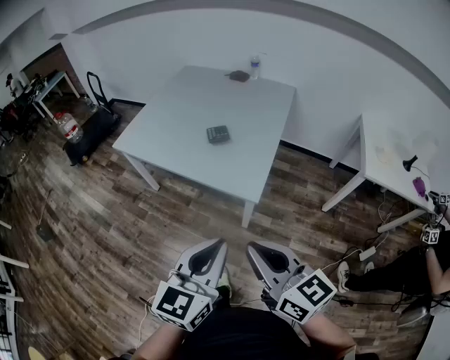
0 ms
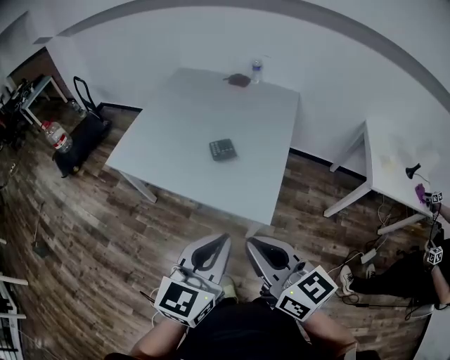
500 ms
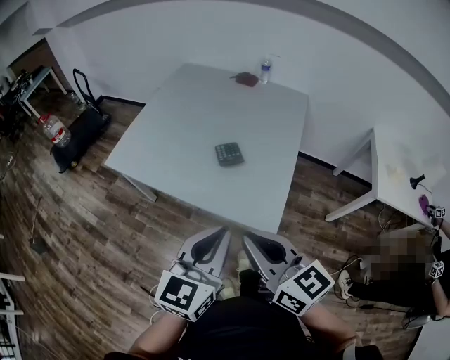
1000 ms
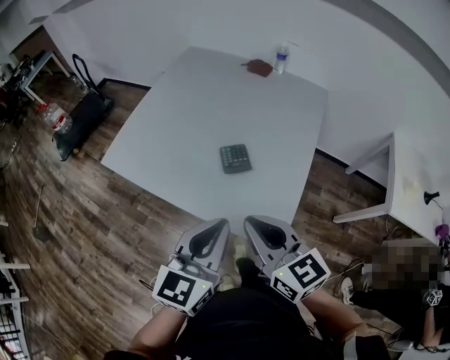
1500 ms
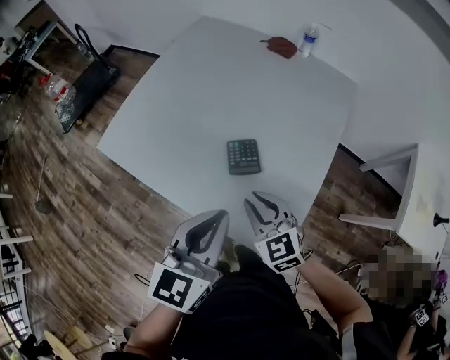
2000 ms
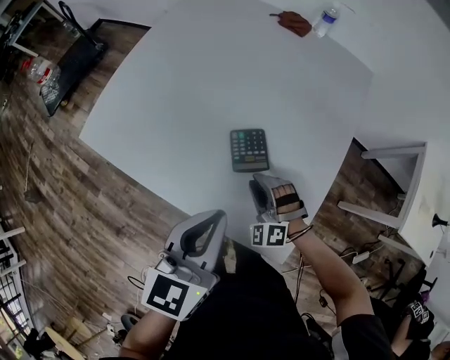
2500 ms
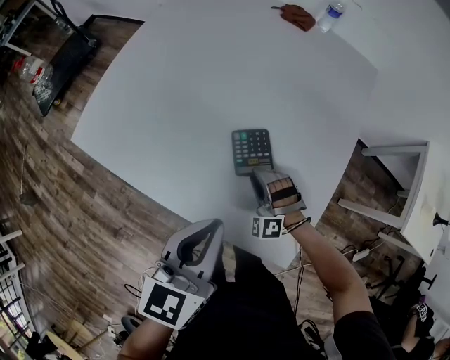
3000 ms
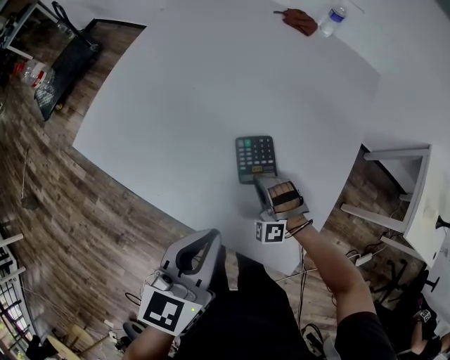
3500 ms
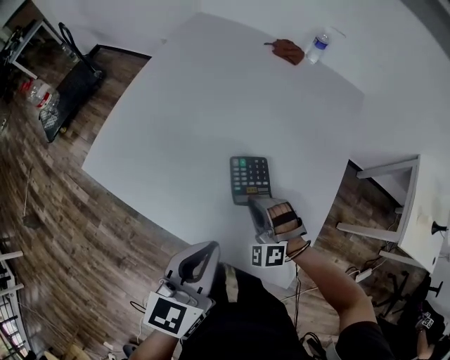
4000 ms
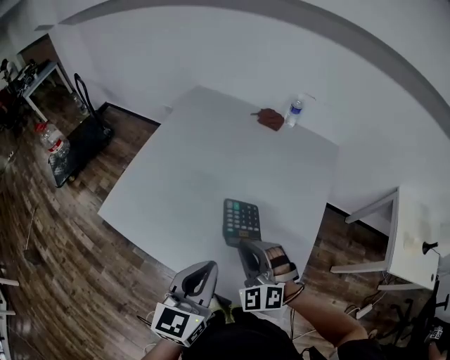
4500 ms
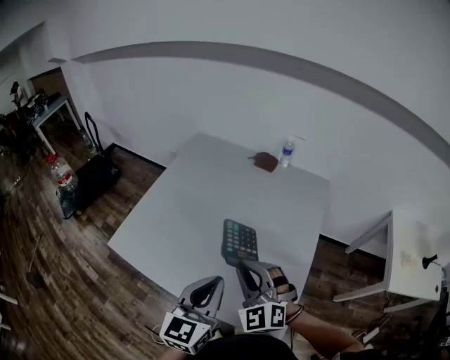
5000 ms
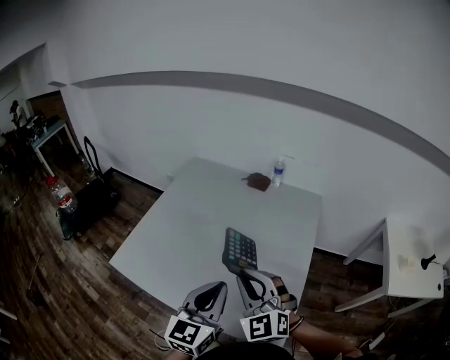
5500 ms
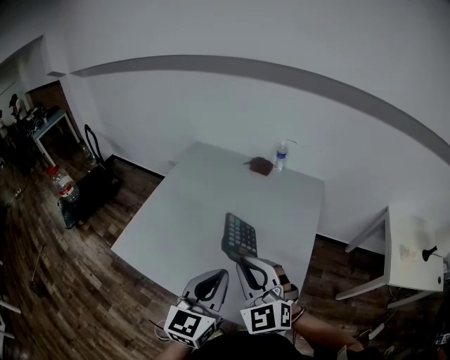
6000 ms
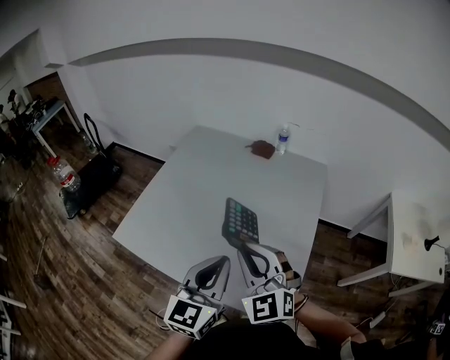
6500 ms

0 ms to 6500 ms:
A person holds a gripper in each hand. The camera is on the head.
0 ms to 2000 ms: The left gripper shifts roughly 40 cm forward; the right gripper heads forward and downward, covering approximately 50 cm, and swivels approximately 40 degrees.
2000 ms to 4500 ms: The right gripper moves forward and to the left, about 5 cm, moves approximately 20 cm downward and comes back, and turns by some 40 degrees, while the left gripper travels to the left by approximately 5 cm, and reaches approximately 10 cm downward, then returns.
4500 ms to 6500 ms: The left gripper is displaced upward by about 5 cm; the right gripper is displaced upward by approximately 15 cm, and rotates some 20 degrees.

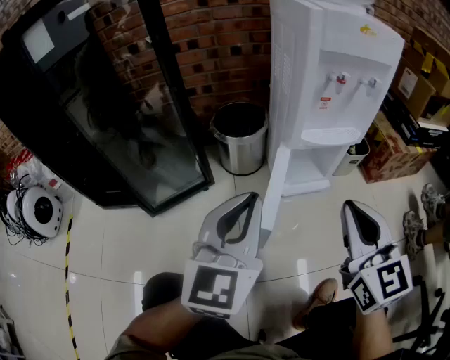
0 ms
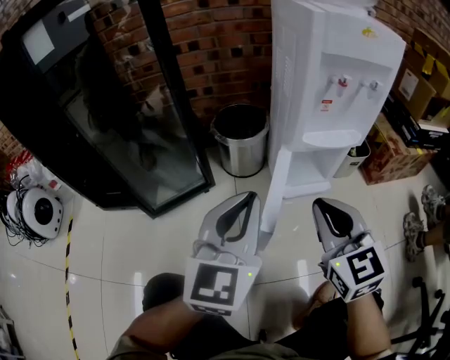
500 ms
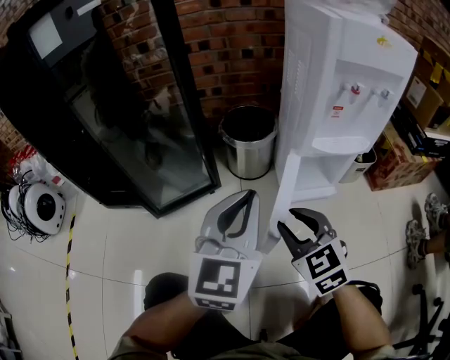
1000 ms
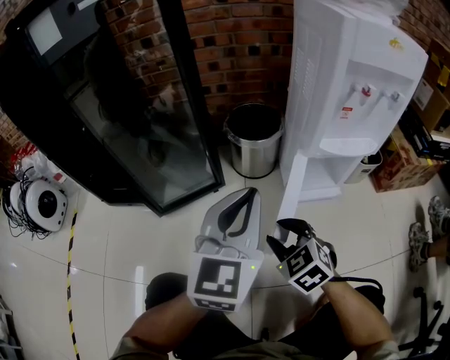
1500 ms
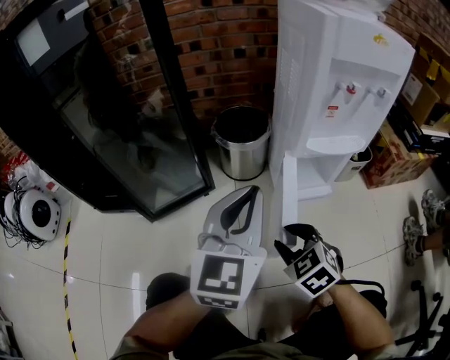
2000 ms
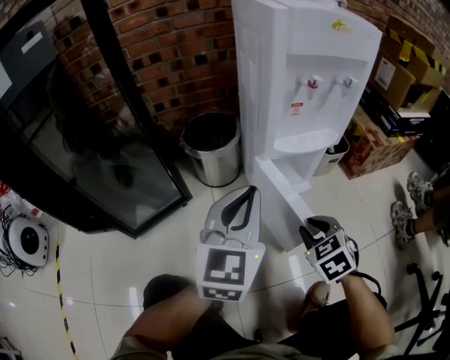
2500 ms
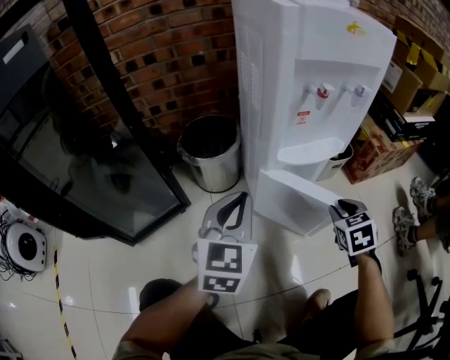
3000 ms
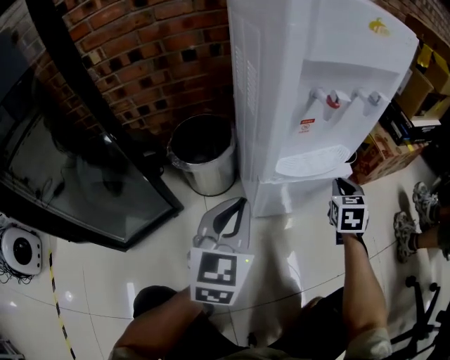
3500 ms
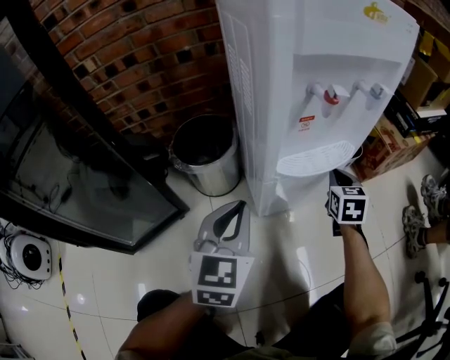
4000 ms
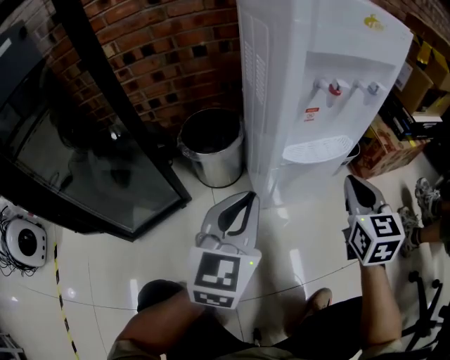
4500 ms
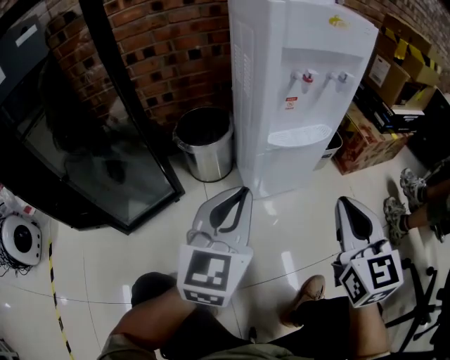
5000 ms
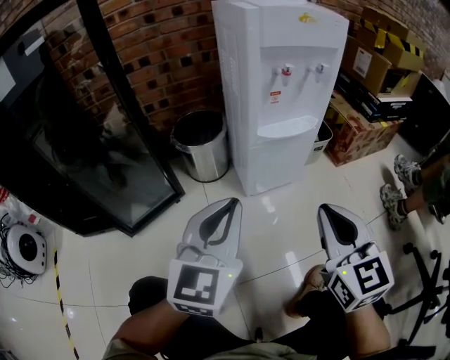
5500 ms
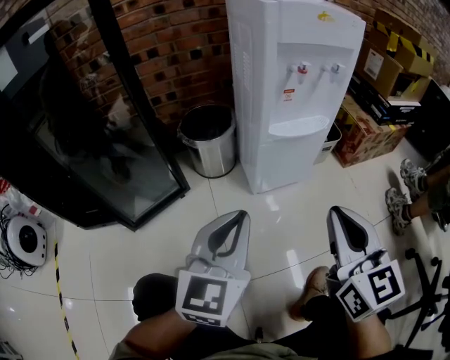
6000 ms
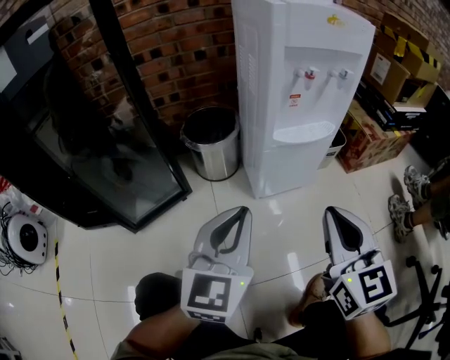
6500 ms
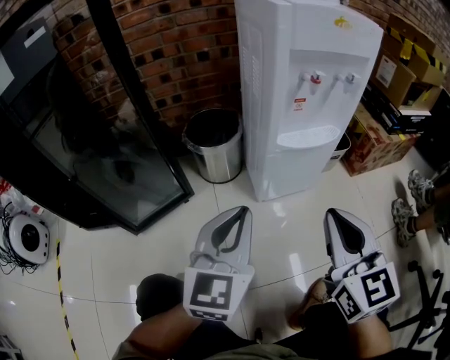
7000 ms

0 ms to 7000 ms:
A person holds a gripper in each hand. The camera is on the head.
0 ms to 2000 ms: The right gripper heads downward and to the left, covering roughly 25 cm, tips its fingers downward by approximately 40 degrees, and opens its fingers.
2000 ms to 3500 ms: The left gripper shifts by some 15 cm. The right gripper moves some 40 cm, rotates some 50 degrees, and closes up.
3500 ms to 5000 ms: The left gripper is displaced backward and upward by approximately 15 cm; the right gripper goes roughly 30 cm backward and upward, and rotates roughly 30 degrees.
5000 ms to 7000 ms: The right gripper changes place by approximately 5 cm.

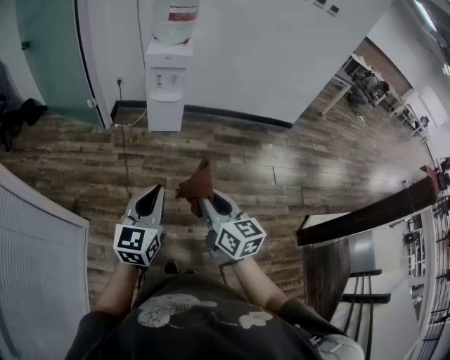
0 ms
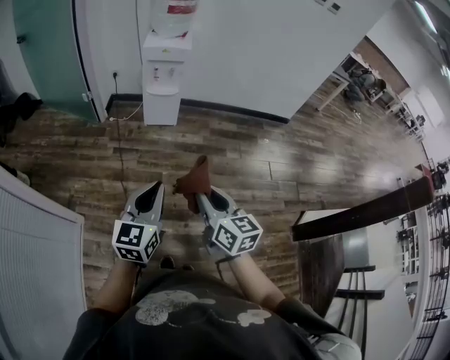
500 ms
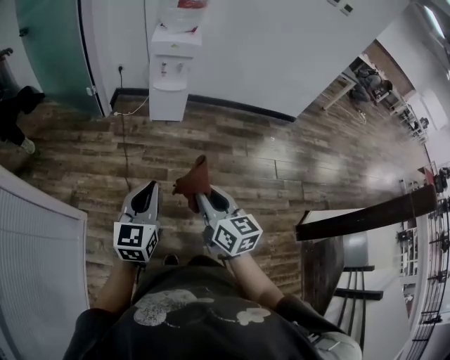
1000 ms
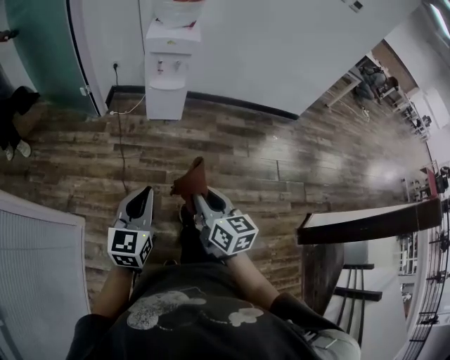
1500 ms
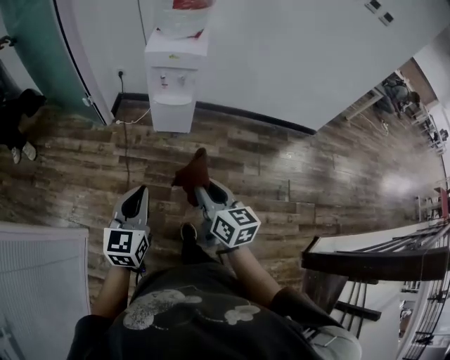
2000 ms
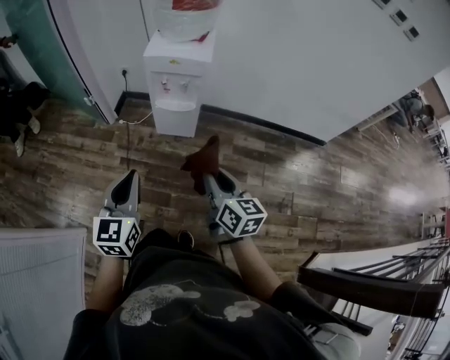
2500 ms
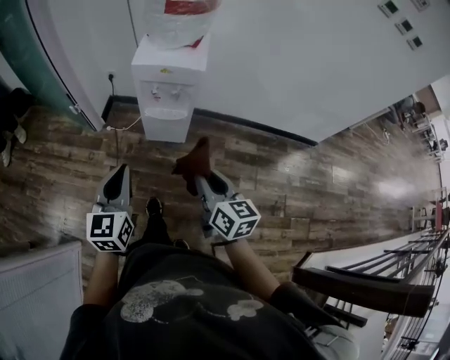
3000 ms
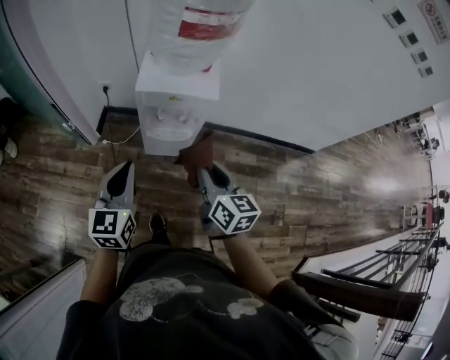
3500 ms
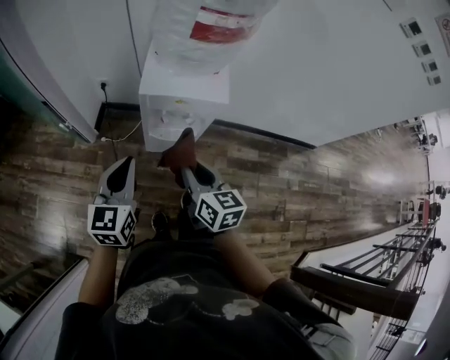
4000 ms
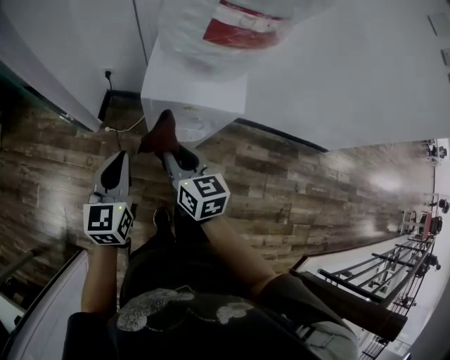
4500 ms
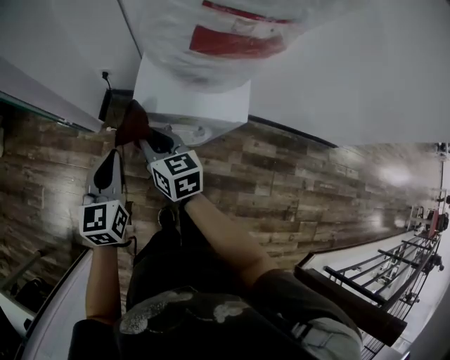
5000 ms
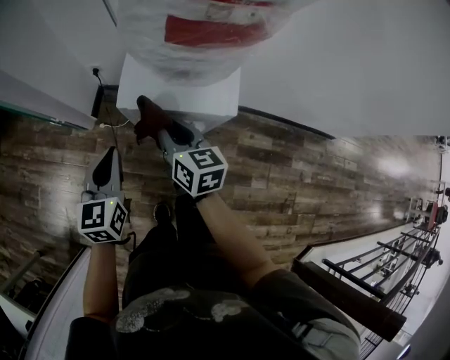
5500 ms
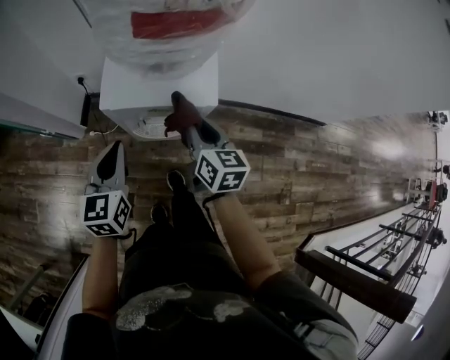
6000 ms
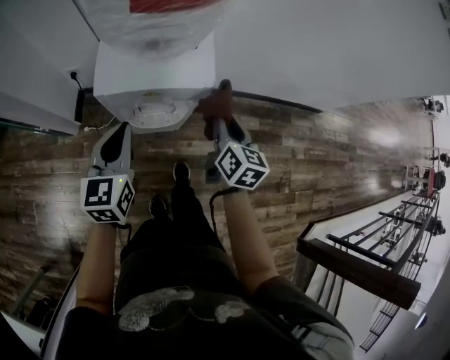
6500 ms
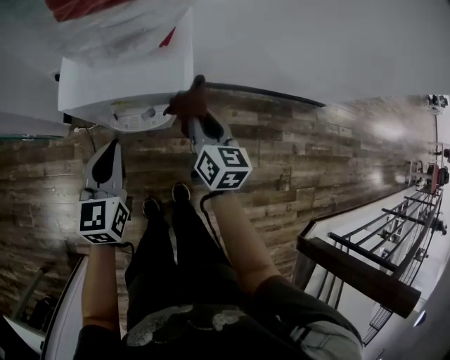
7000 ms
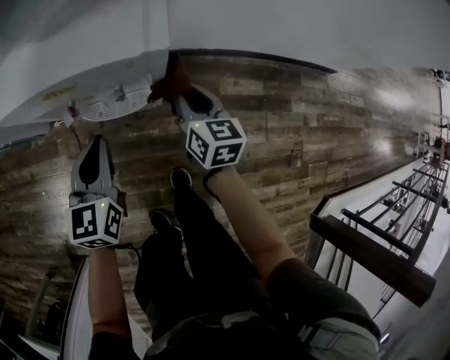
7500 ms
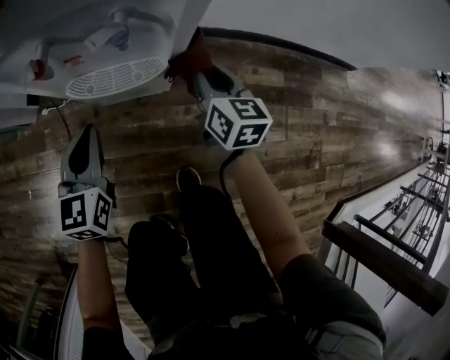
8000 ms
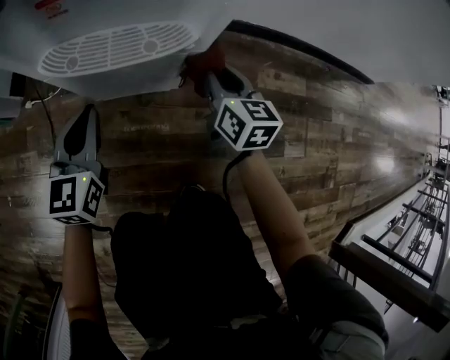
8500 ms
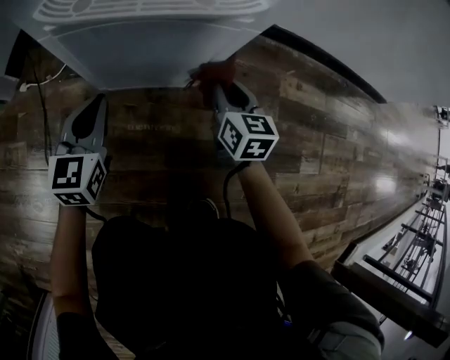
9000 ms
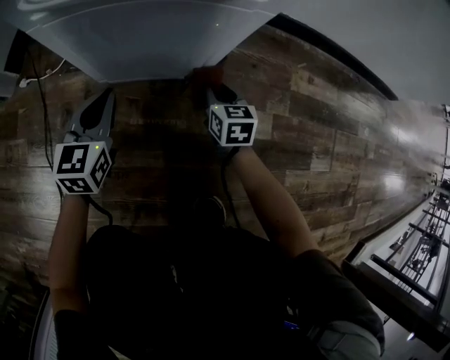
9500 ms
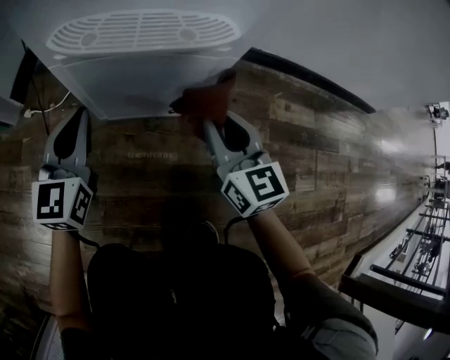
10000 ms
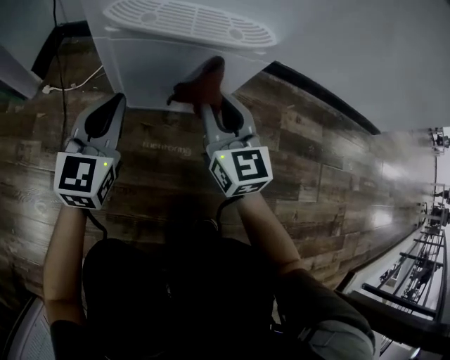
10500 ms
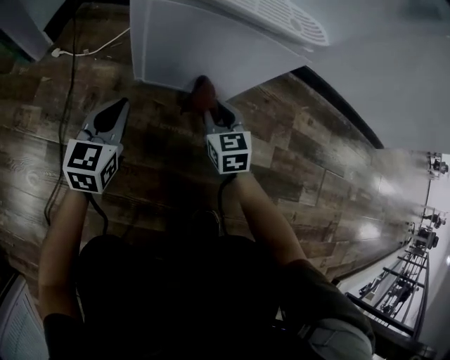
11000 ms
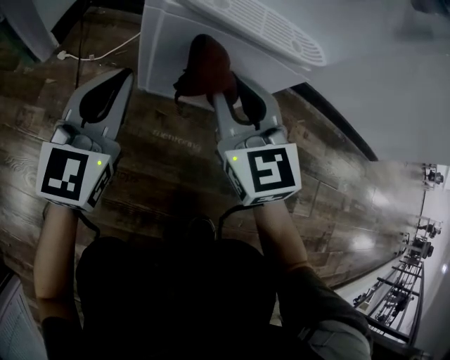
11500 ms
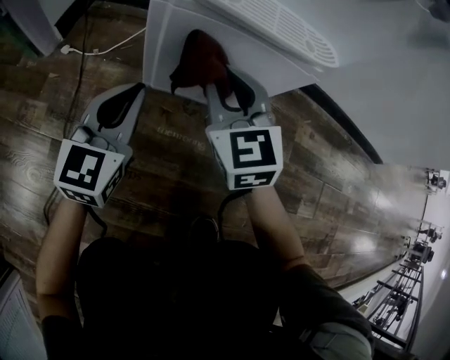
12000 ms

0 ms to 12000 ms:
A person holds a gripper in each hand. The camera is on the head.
0 ms to 2000 ms: The two grippers go approximately 25 cm forward.
2000 ms to 4000 ms: Both grippers move forward, some 40 cm.
4000 ms to 6000 ms: The left gripper heads forward, downward and to the right, covering some 15 cm. The right gripper heads forward and to the right, covering approximately 20 cm.
6000 ms to 8000 ms: Both grippers move downward, approximately 30 cm.
8000 ms to 10000 ms: Both grippers travel together downward, approximately 15 cm. The right gripper changes its angle by roughly 20 degrees.
10000 ms to 12000 ms: The left gripper swings up and down, approximately 15 cm each way, with 2 reversals. Meanwhile the right gripper goes up and down, about 25 cm each way, reversing 2 times, and swivels roughly 30 degrees.

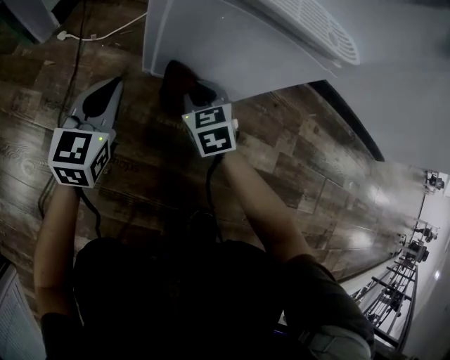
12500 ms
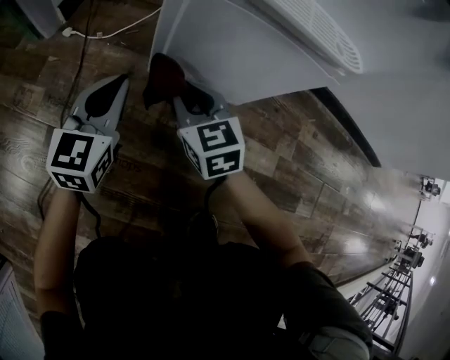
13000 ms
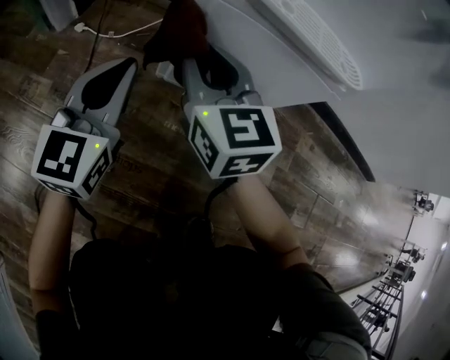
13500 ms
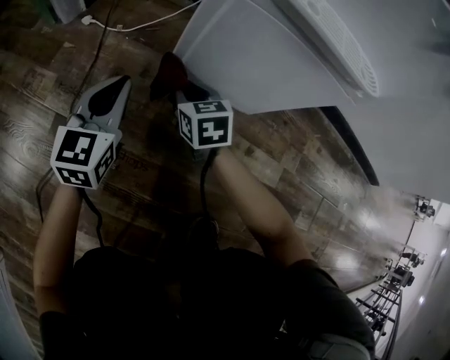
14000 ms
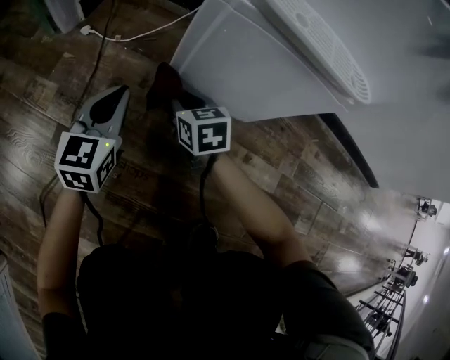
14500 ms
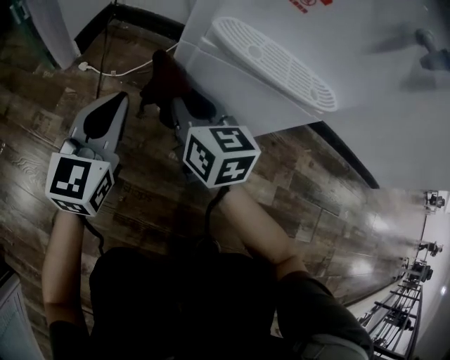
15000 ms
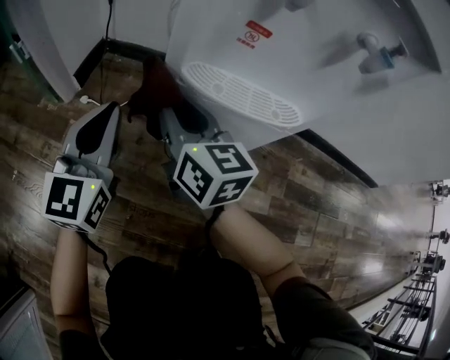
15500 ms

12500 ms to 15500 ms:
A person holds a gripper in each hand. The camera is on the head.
12500 ms to 14000 ms: The right gripper is displaced to the left by some 5 cm, and reaches about 20 cm upward, then returns, while the left gripper goes upward and returns, some 10 cm each way.
14000 ms to 15500 ms: Both grippers move upward, some 25 cm. The right gripper tips its fingers upward by some 30 degrees.
